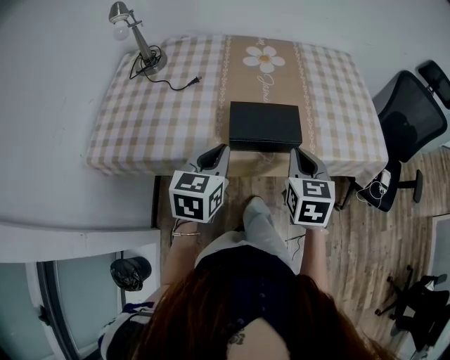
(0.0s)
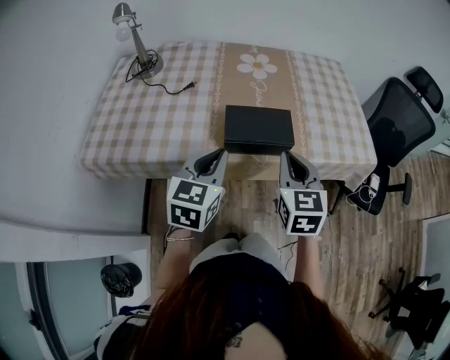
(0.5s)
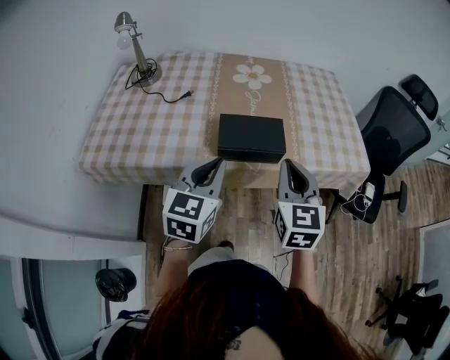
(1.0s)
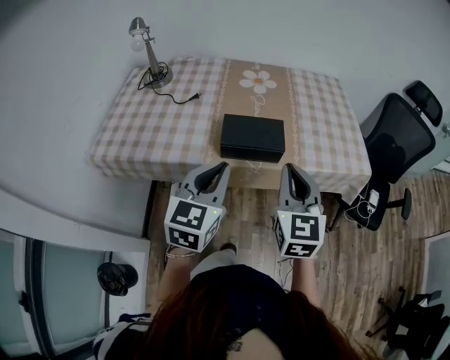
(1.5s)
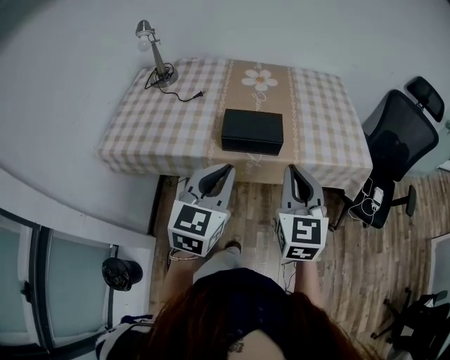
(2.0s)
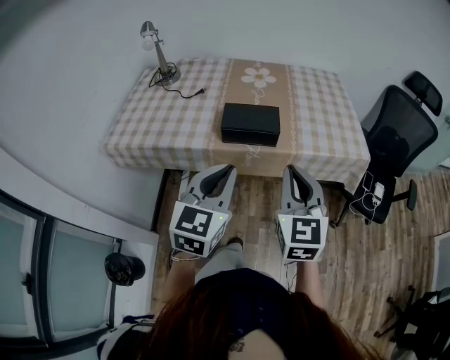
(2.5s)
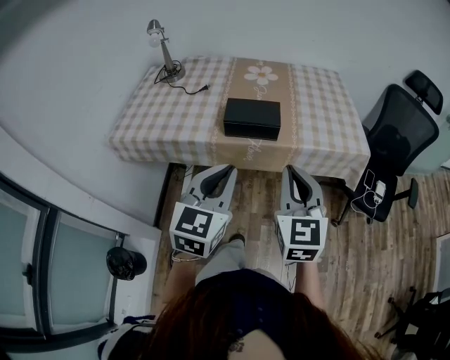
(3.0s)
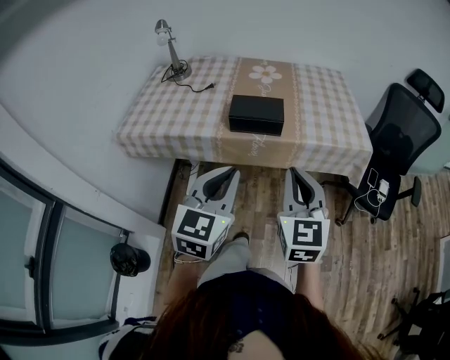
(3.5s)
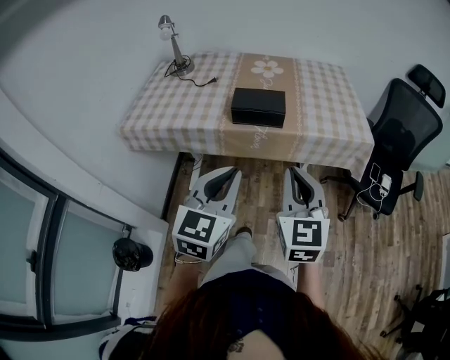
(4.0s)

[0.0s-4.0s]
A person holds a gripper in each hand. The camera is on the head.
0.0s to 2.0s: The right gripper goes about 15 cm backward and upward, and rotates roughly 20 degrees, while the left gripper travels backward, upward and to the right by approximately 15 cm.
2.0s to 4.0s: Both grippers travel together backward, roughly 15 cm.

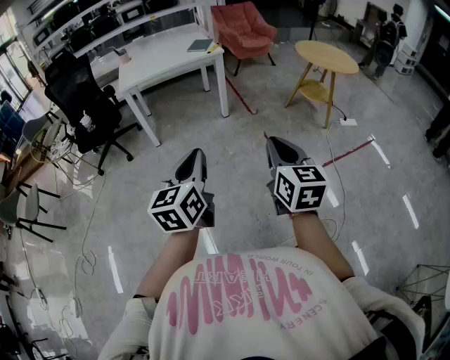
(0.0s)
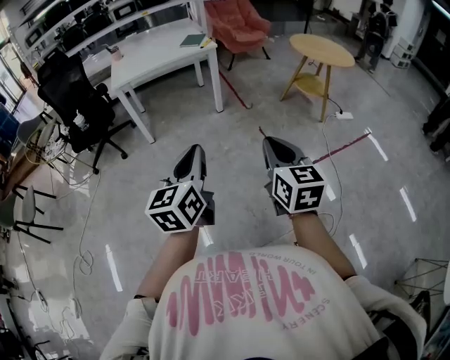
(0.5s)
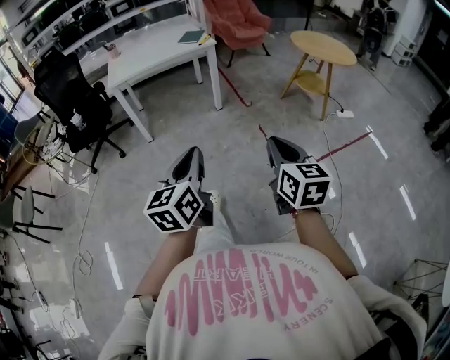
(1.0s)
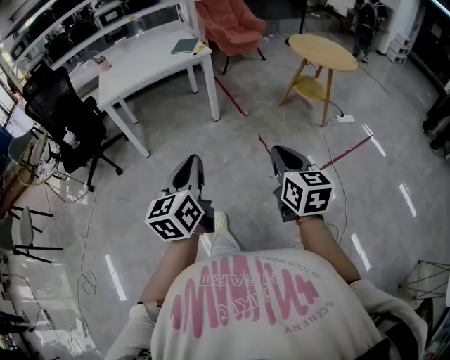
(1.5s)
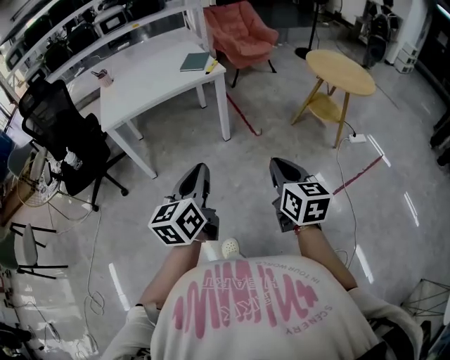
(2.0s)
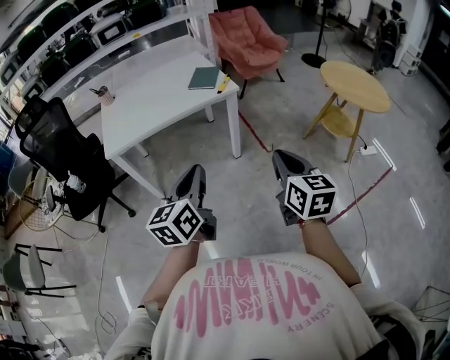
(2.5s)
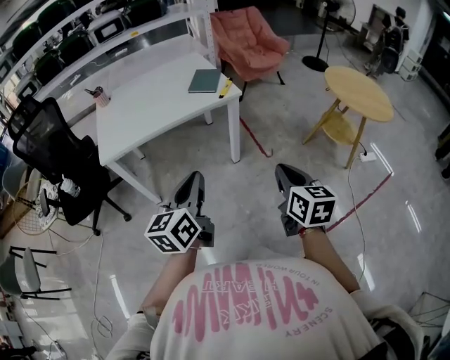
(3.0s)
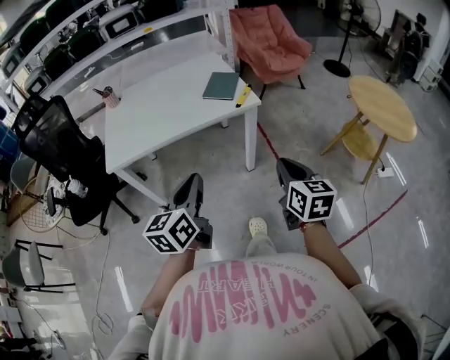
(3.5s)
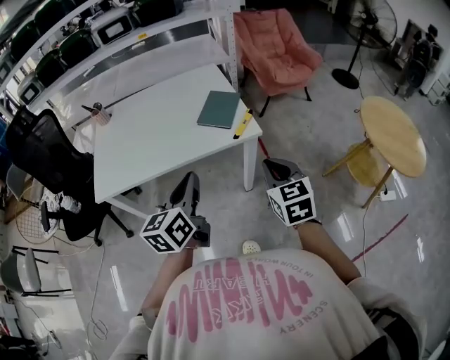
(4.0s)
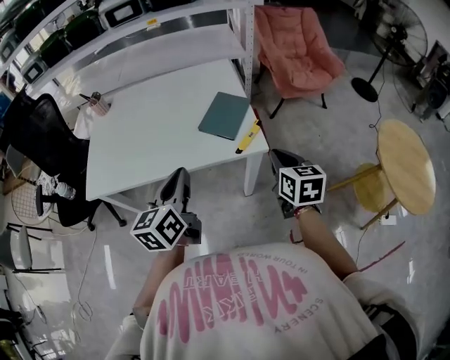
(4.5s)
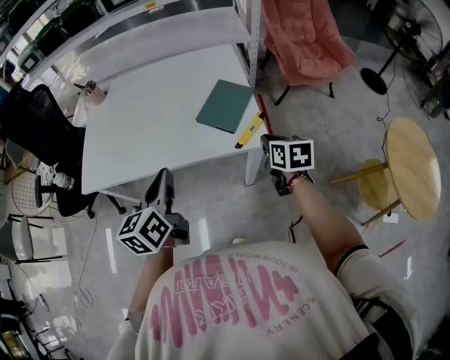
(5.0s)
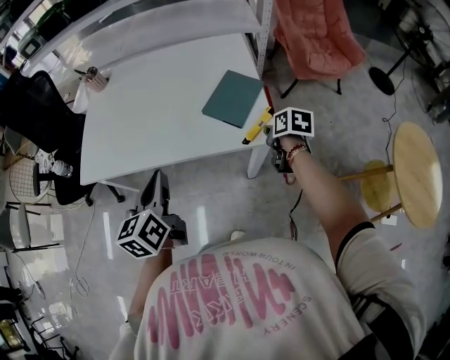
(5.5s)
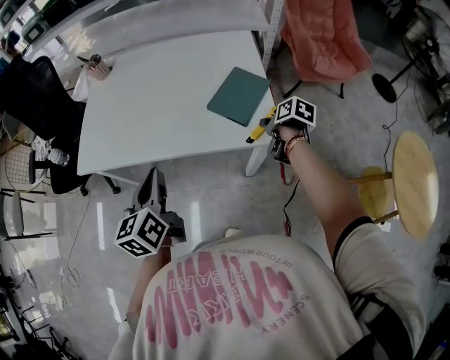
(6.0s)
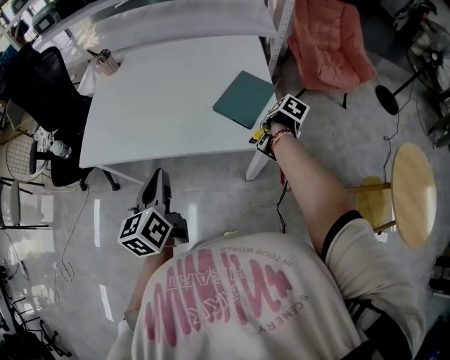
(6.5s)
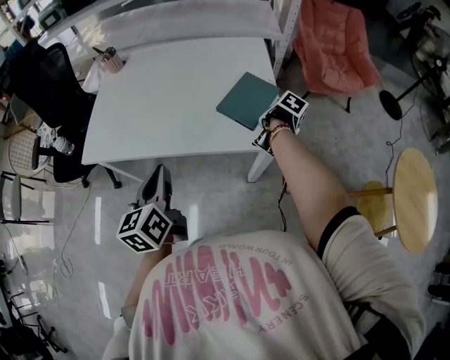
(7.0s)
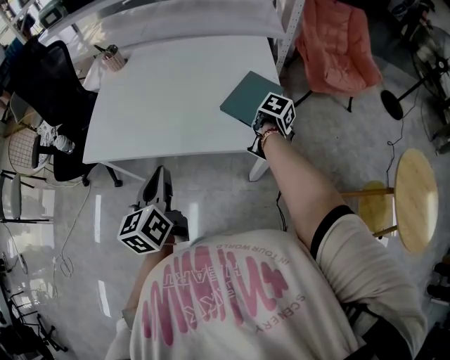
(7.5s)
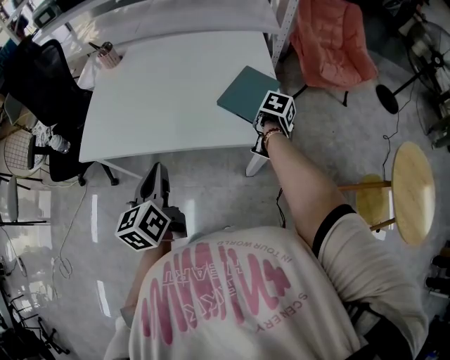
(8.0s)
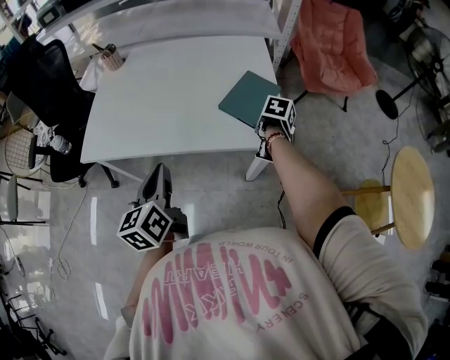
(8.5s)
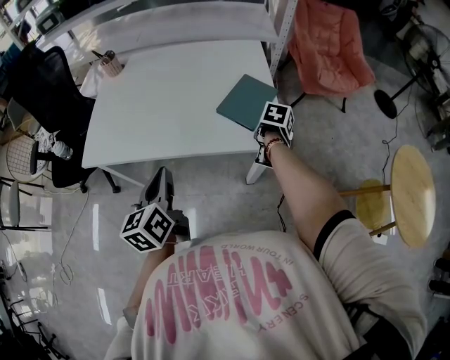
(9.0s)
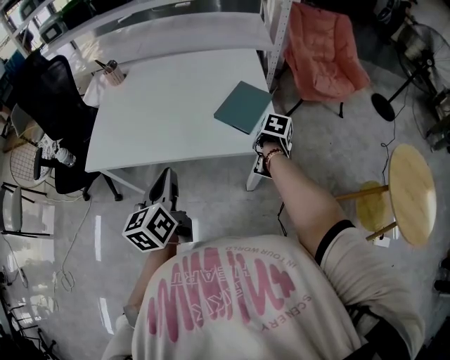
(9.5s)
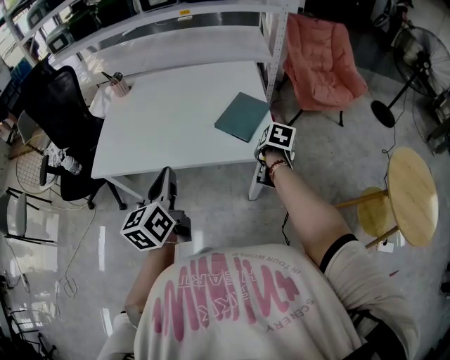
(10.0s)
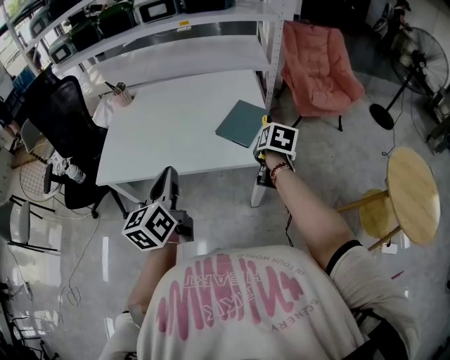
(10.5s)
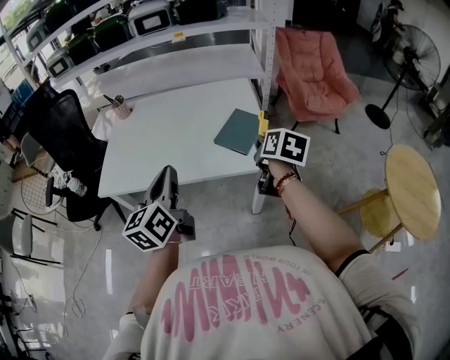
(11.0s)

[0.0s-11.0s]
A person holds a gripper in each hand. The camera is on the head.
0.0s to 2.0s: The two grippers go approximately 40 cm forward.
2.0s to 3.5s: Both grippers are carried forward, roughly 40 cm.
3.5s to 5.5s: The right gripper moves roughly 60 cm, and angles its fingers downward, by approximately 30 degrees, while the left gripper changes place by roughly 35 cm, and swivels approximately 30 degrees.
5.5s to 7.5s: The right gripper changes its angle by some 30 degrees, and opens its fingers.
7.5s to 9.0s: The grippers stay close to where they were, moving slightly.
9.0s to 11.0s: The right gripper moves upward and backward, about 20 cm, and points its fingers some 40 degrees further upward. Meanwhile the left gripper goes approximately 10 cm upward.

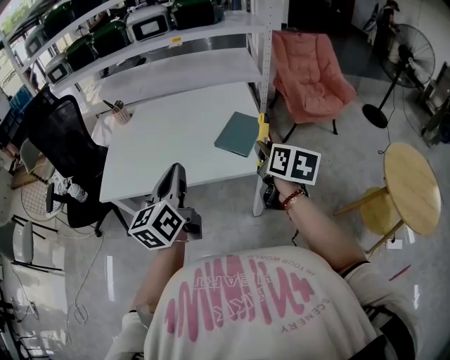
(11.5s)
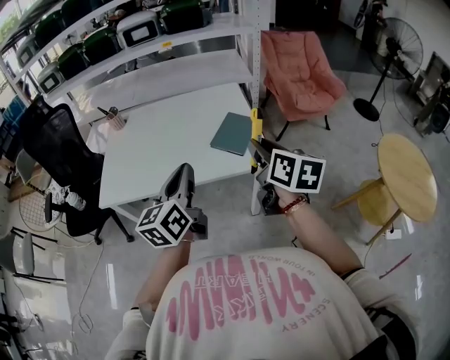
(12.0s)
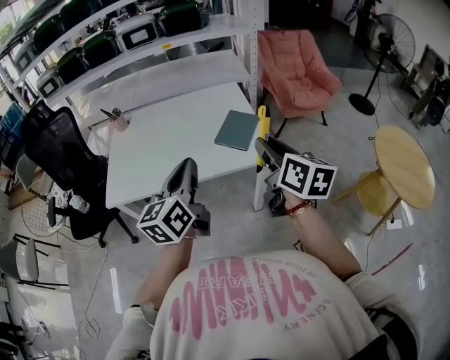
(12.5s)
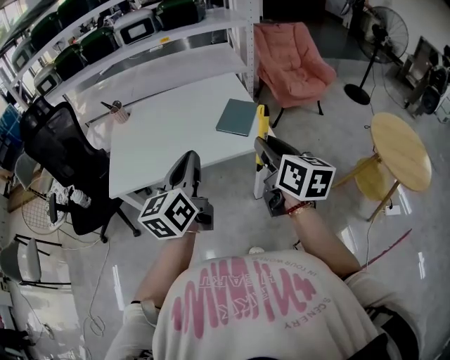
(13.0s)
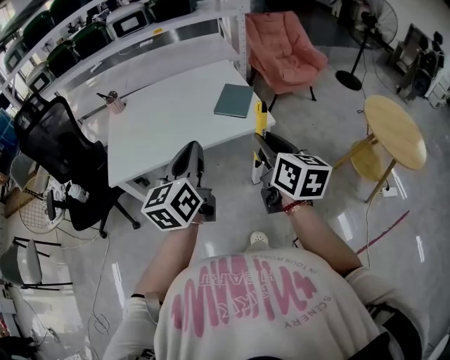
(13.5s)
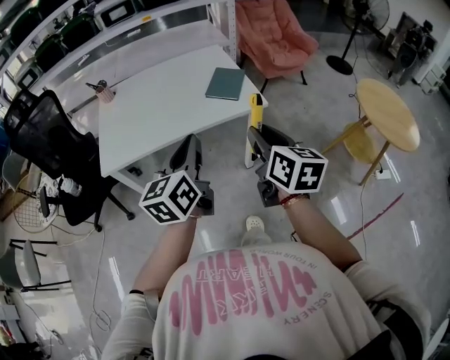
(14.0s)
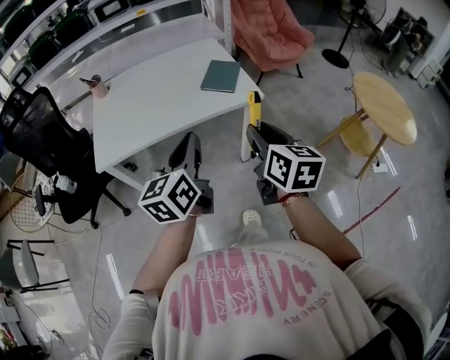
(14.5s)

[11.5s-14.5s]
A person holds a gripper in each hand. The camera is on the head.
11.5s to 13.0s: The right gripper goes roughly 20 cm backward, upward and to the left; the left gripper moves backward, about 10 cm.
13.0s to 14.5s: The grippers both shift backward and downward by about 10 cm.

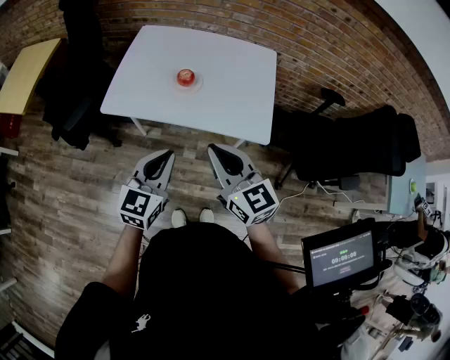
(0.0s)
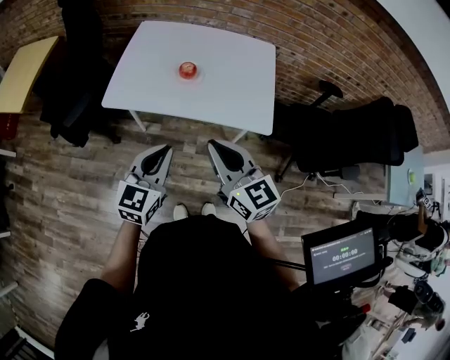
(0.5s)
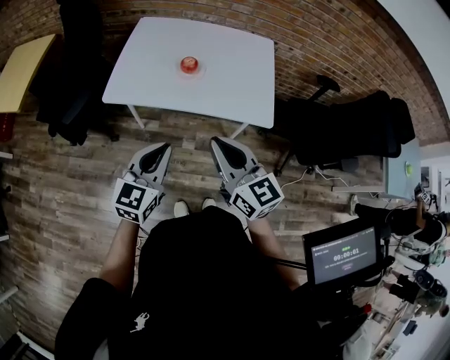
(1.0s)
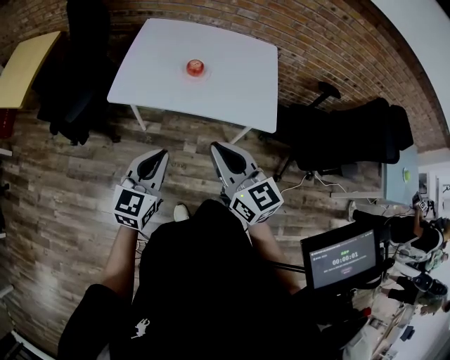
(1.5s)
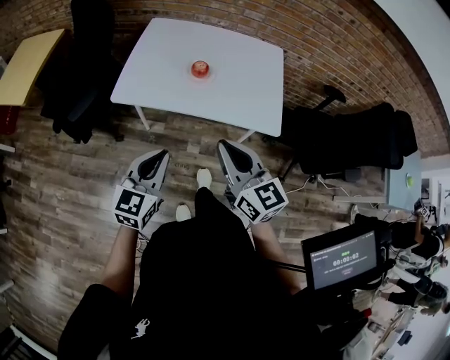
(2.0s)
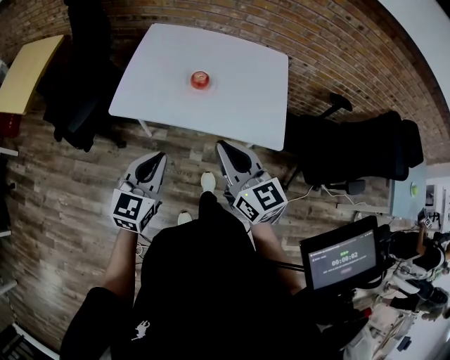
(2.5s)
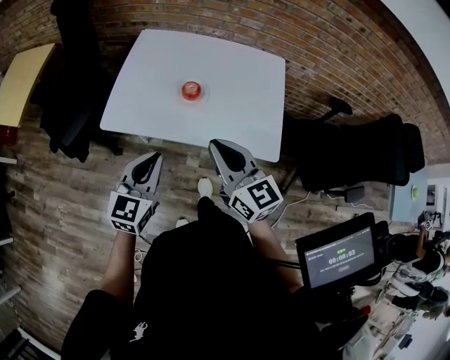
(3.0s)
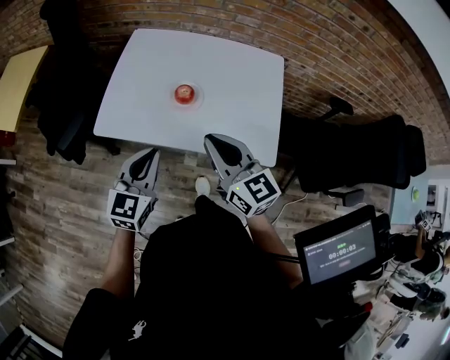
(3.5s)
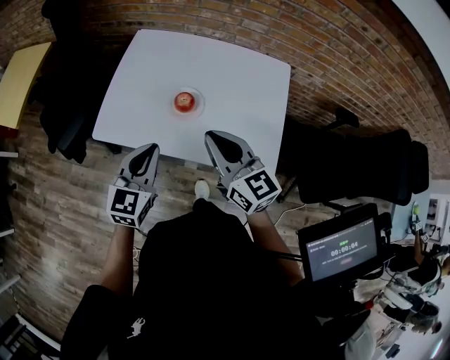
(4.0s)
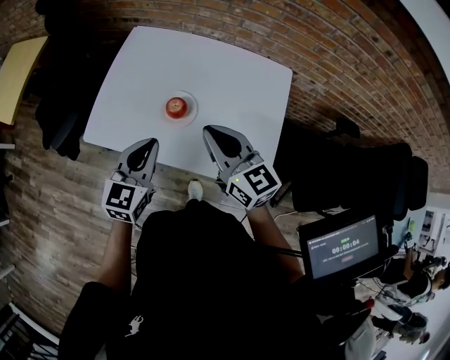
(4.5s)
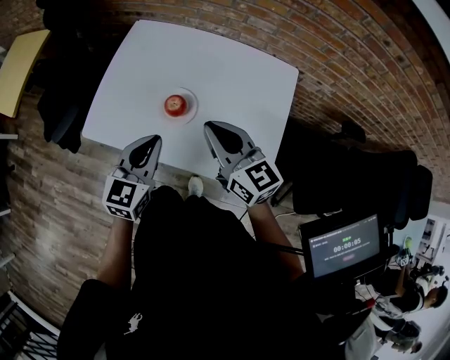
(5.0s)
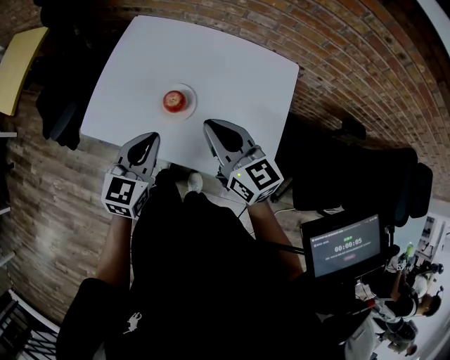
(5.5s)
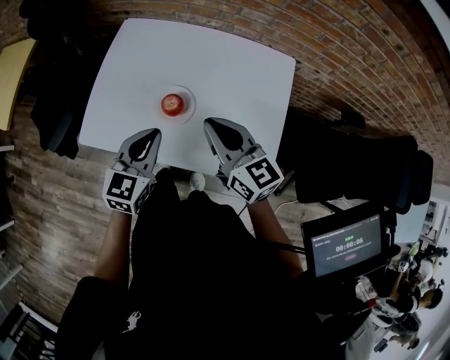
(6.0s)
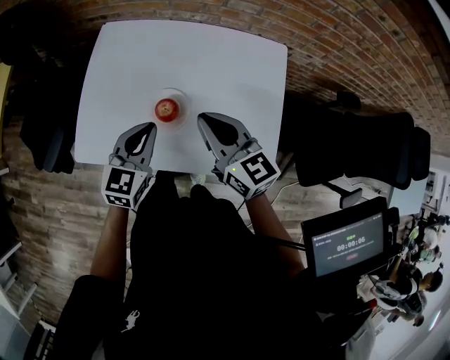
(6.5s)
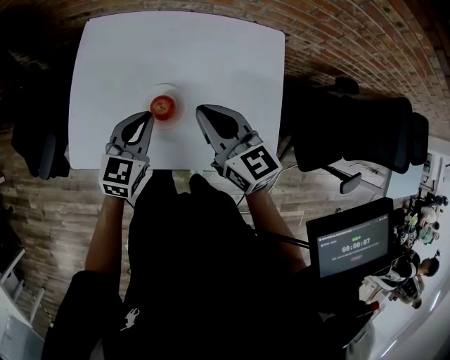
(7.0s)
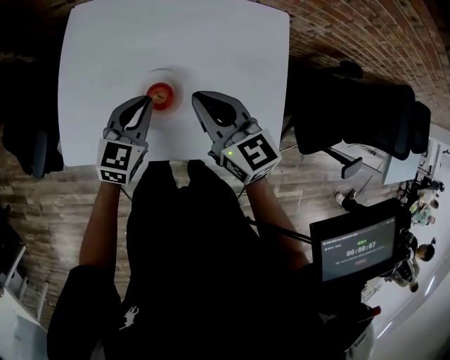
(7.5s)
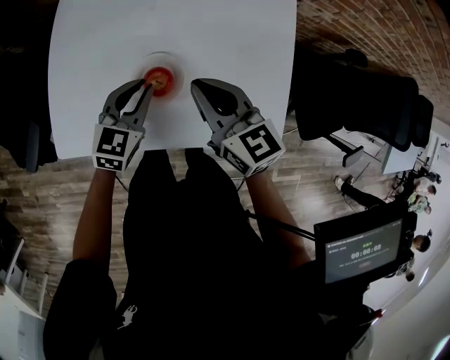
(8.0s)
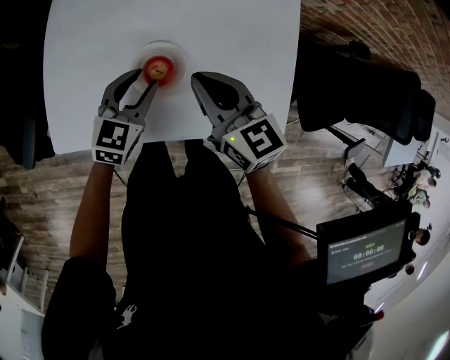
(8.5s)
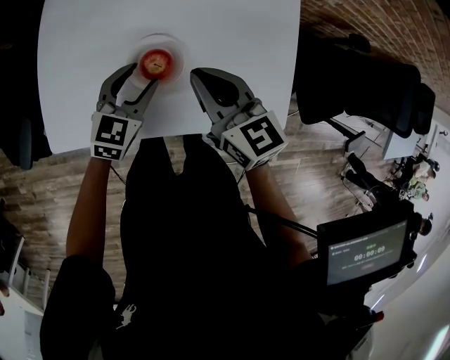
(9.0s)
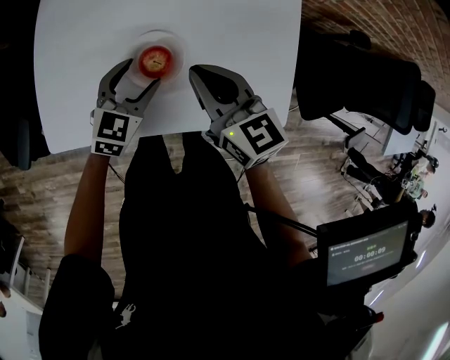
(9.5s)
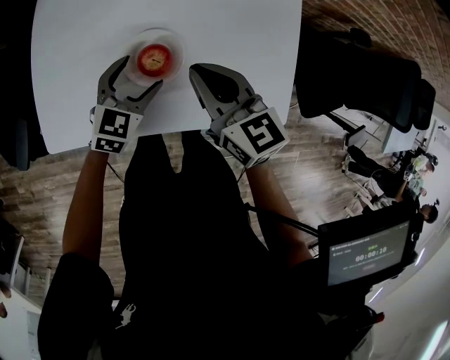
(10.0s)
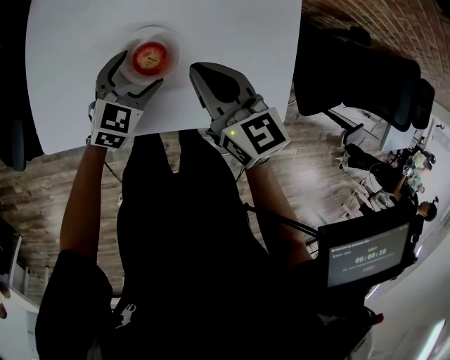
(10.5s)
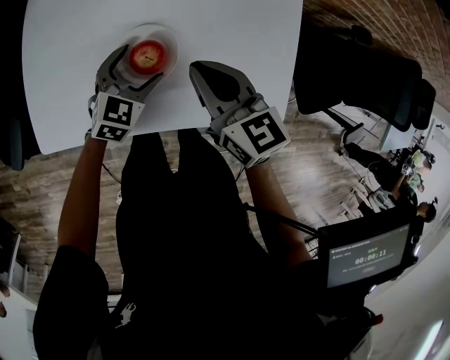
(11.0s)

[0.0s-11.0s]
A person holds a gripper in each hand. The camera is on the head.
0.0s to 2.0s: The right gripper ends up approximately 5 cm from where it was. Meanwhile the left gripper travels to the left by approximately 10 cm.
2.0s to 3.5s: The two grippers go some 15 cm forward.
3.5s to 5.5s: The grippers both shift forward and to the right by about 15 cm.
5.5s to 7.5s: The left gripper travels forward and downward by some 15 cm, and changes its angle by roughly 20 degrees. Meanwhile the right gripper heads forward and downward, covering approximately 10 cm.
7.5s to 9.0s: The left gripper moves downward, some 5 cm, and opens up.
9.0s to 11.0s: The left gripper goes roughly 5 cm downward, and opens its fingers.
